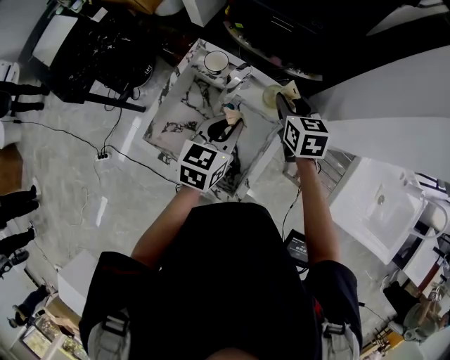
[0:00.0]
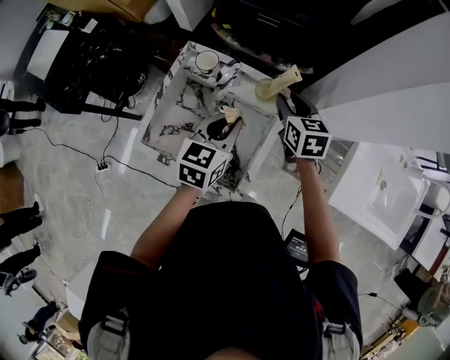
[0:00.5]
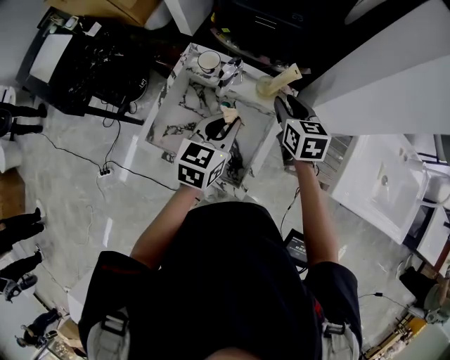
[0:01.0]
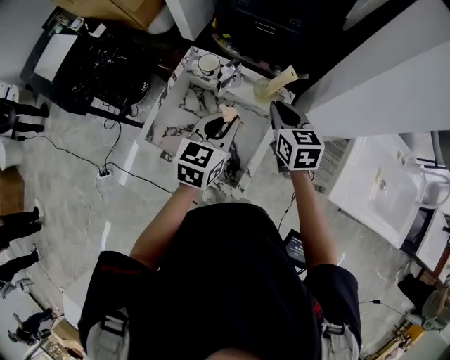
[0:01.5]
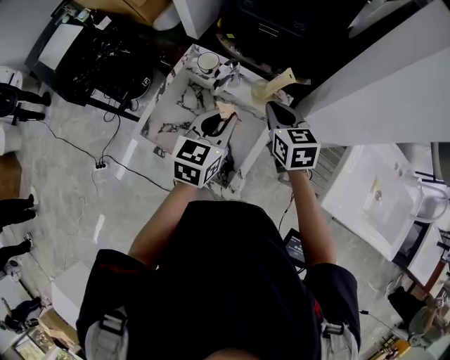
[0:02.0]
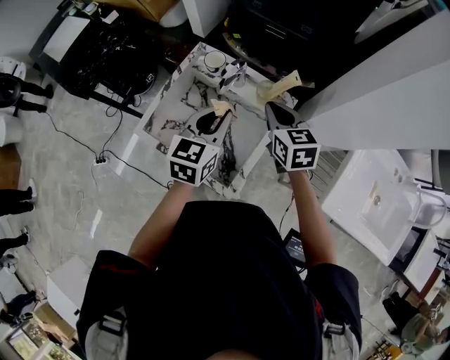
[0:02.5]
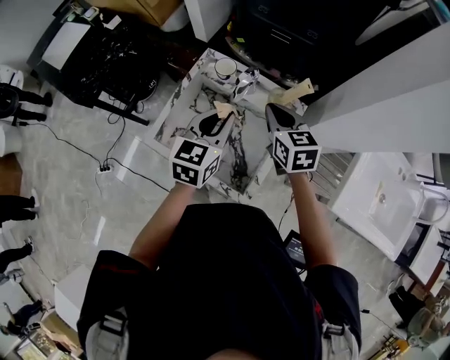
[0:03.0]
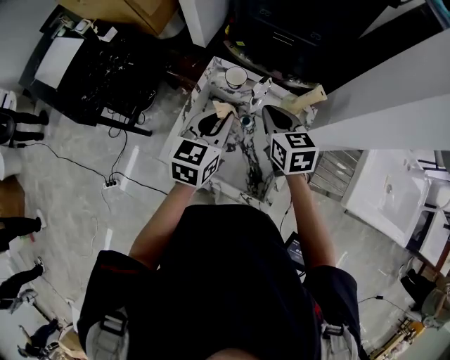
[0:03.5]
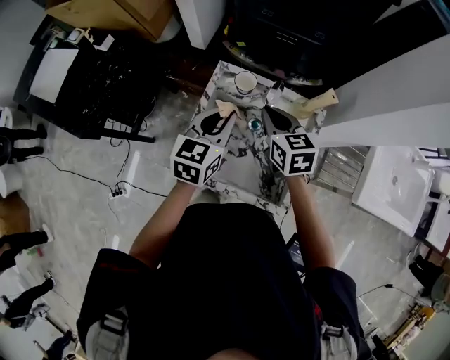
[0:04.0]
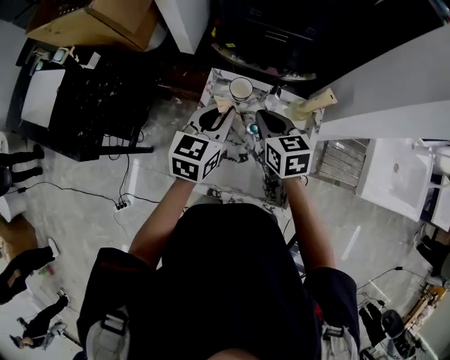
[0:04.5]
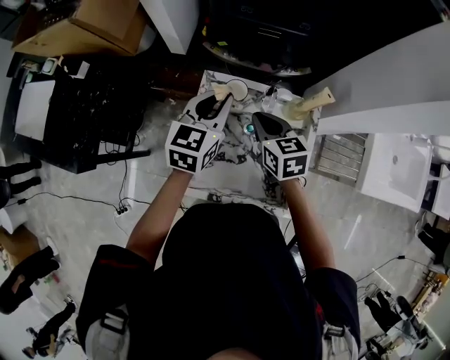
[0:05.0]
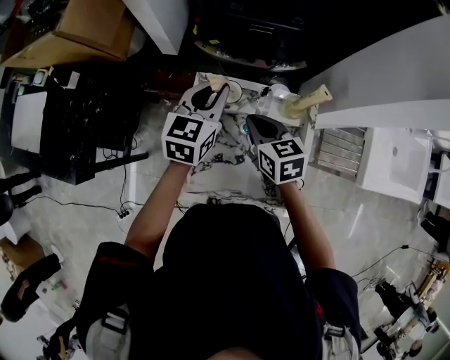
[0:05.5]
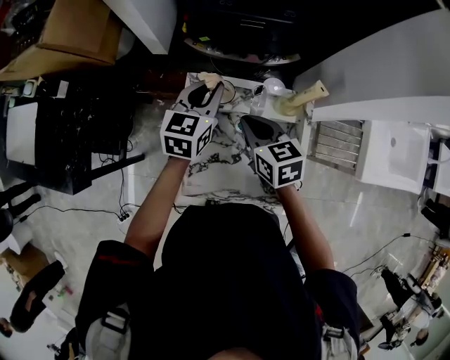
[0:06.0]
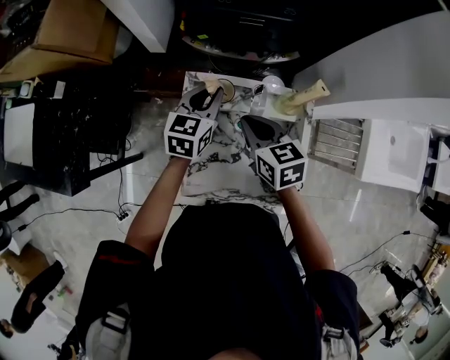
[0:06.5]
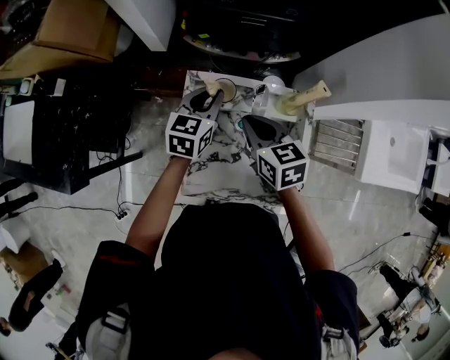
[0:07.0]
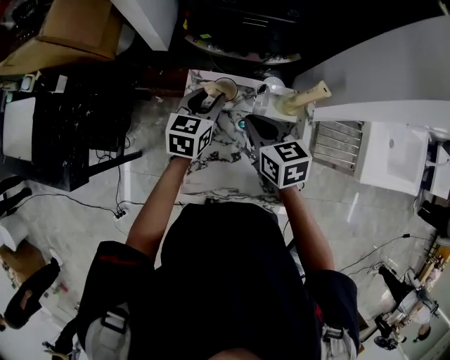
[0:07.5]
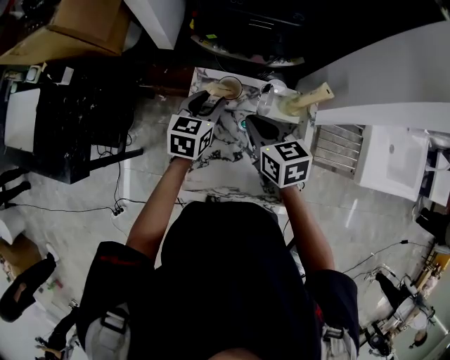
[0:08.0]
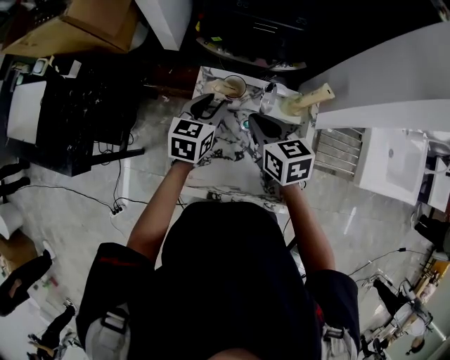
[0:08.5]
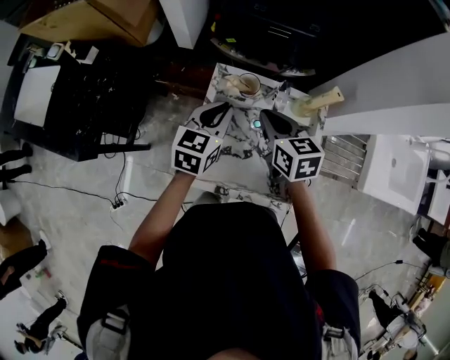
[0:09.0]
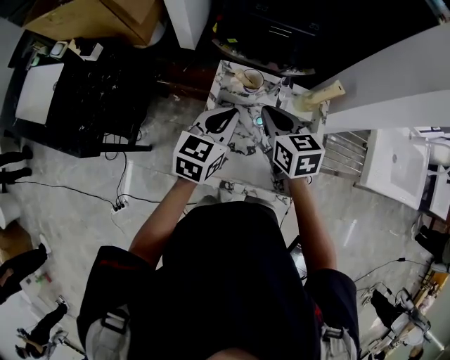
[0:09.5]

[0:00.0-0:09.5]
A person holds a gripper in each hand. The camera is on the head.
0:00.0 to 0:02.0: The left gripper shifts by roughly 5 cm. Meanwhile the right gripper is displaced backward by approximately 10 cm, and closes.
0:02.0 to 0:04.0: The right gripper is displaced to the left by about 15 cm; the left gripper heads to the left and forward, covering about 20 cm.
0:04.0 to 0:05.5: The left gripper travels forward by roughly 15 cm.
0:05.5 to 0:07.5: The left gripper travels downward by approximately 10 cm, and opens up.
0:07.5 to 0:09.5: The left gripper shifts roughly 15 cm backward and upward, and closes; the right gripper changes place by roughly 5 cm.

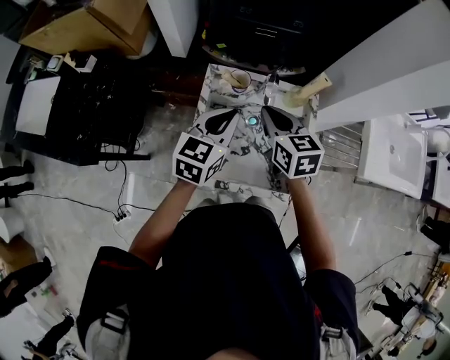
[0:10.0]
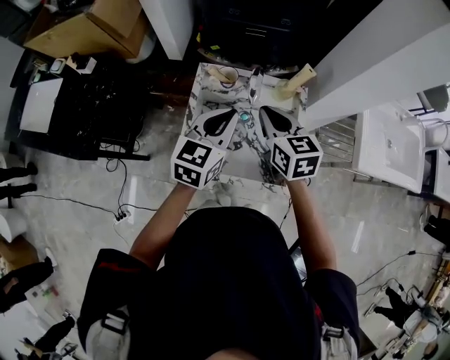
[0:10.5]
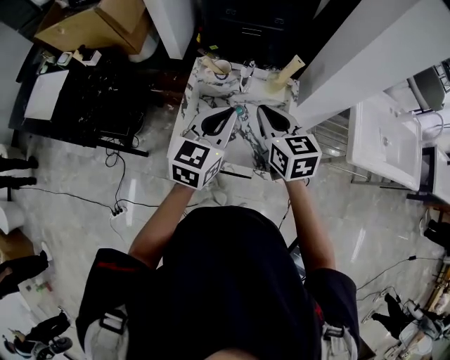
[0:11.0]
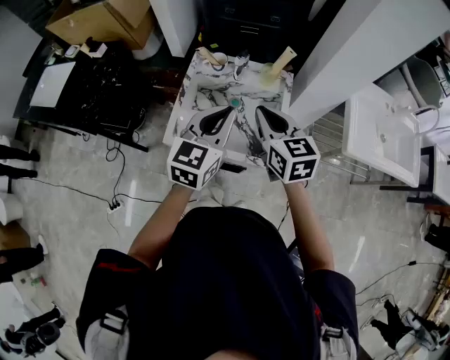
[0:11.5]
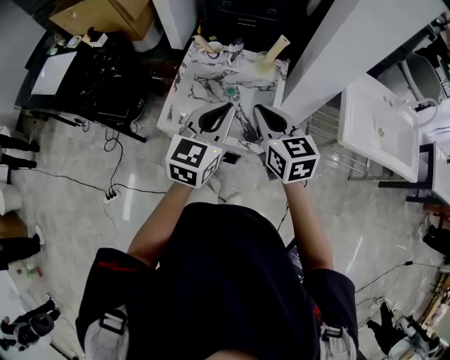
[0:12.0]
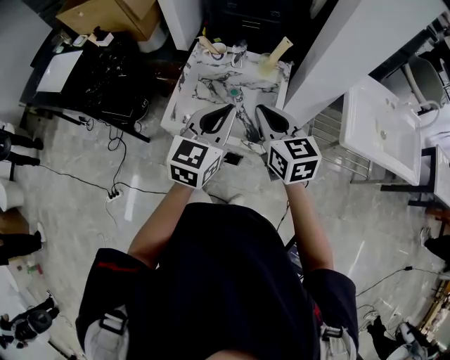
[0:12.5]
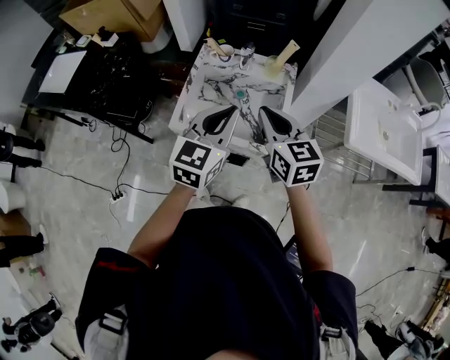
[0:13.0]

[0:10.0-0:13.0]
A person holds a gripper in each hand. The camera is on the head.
0:10.0 to 0:11.5: The grippers both shift backward, to the right and upward by about 20 cm.
0:11.5 to 0:13.0: Both grippers travel together backward, about 5 cm.

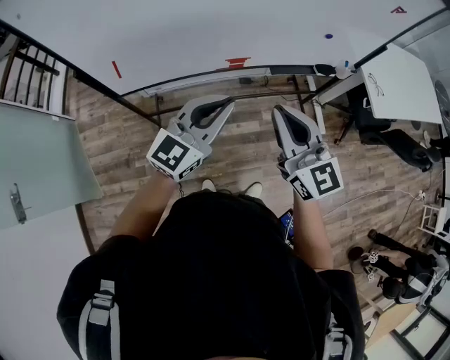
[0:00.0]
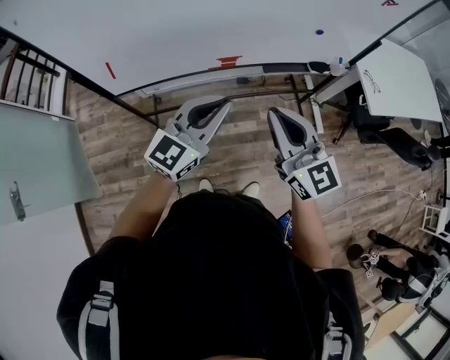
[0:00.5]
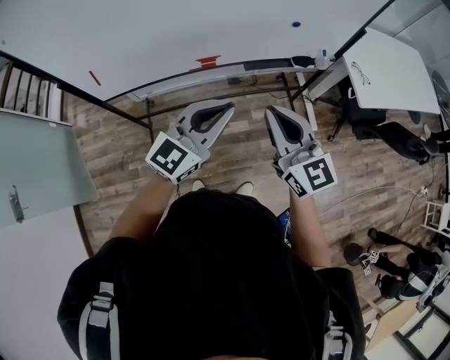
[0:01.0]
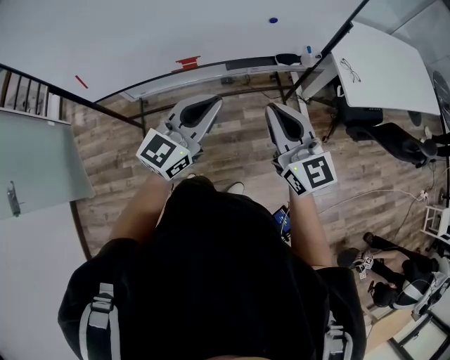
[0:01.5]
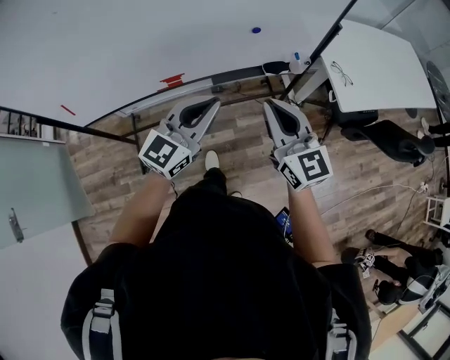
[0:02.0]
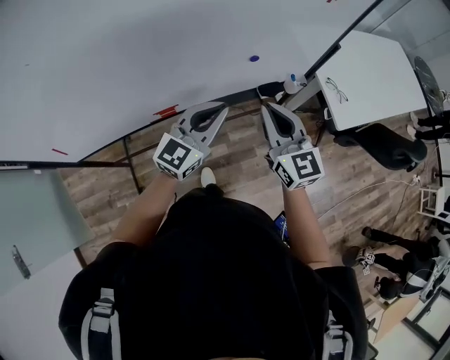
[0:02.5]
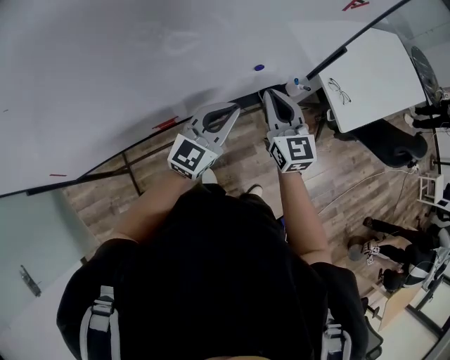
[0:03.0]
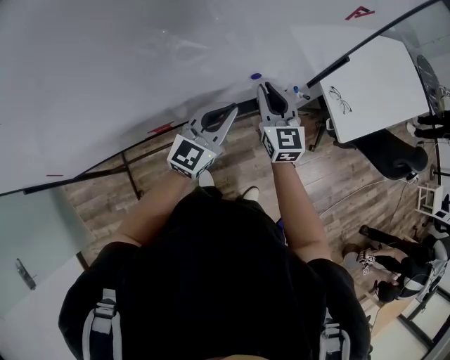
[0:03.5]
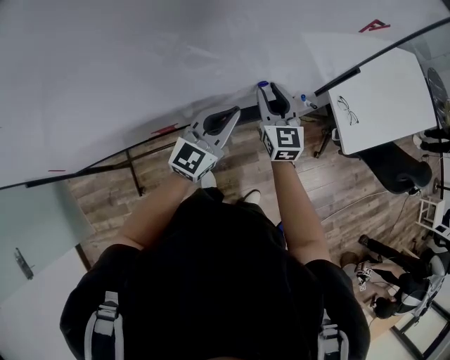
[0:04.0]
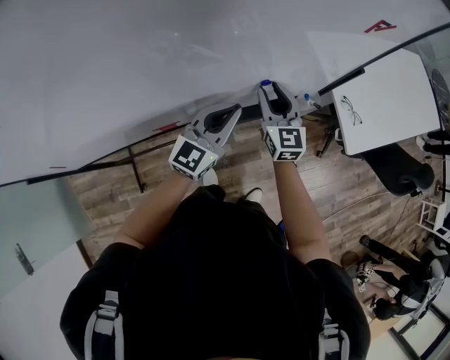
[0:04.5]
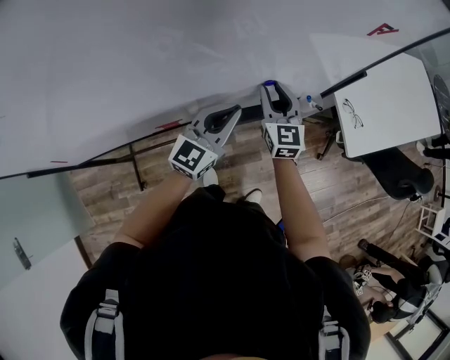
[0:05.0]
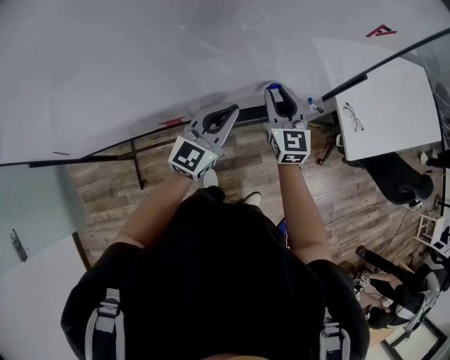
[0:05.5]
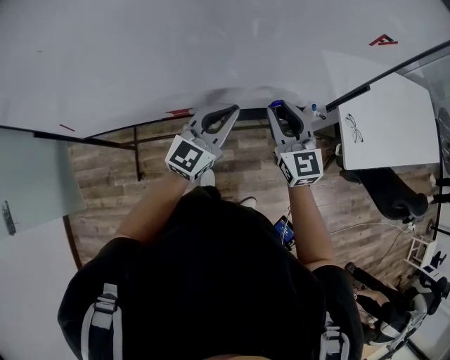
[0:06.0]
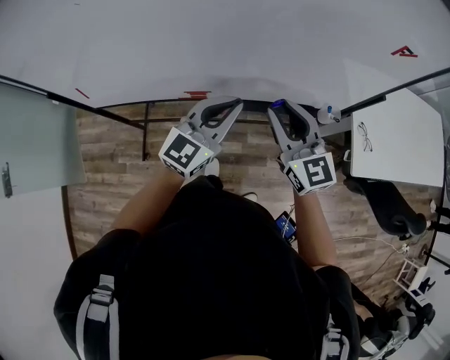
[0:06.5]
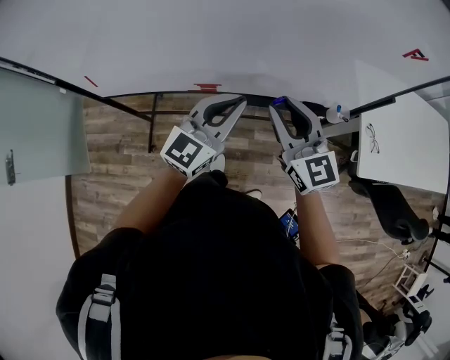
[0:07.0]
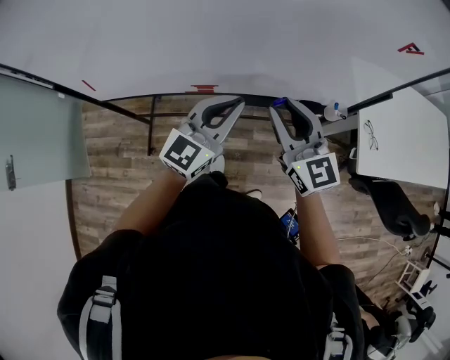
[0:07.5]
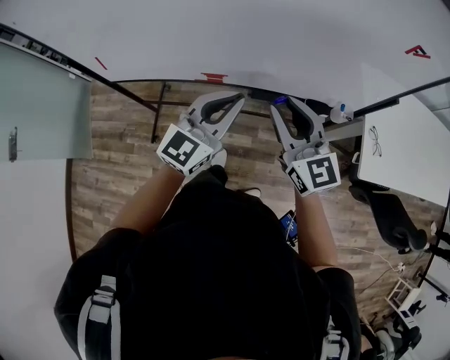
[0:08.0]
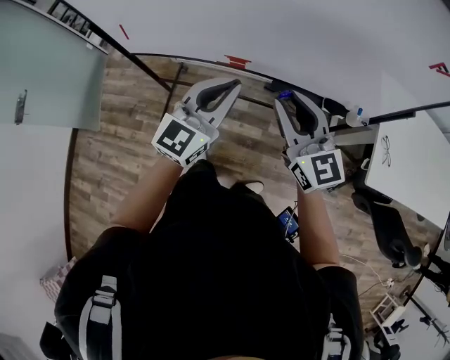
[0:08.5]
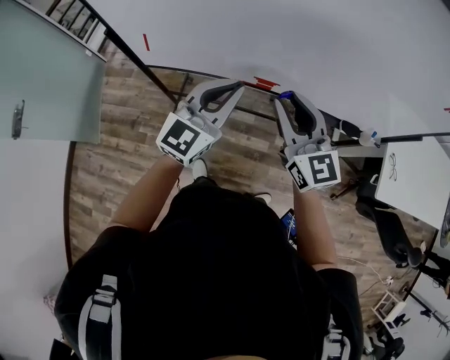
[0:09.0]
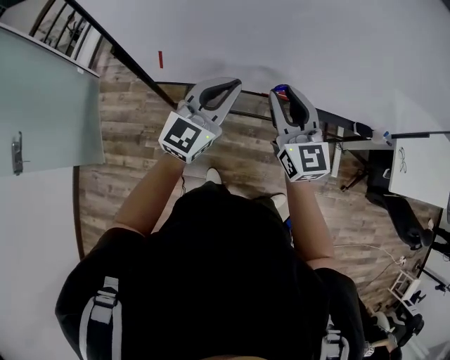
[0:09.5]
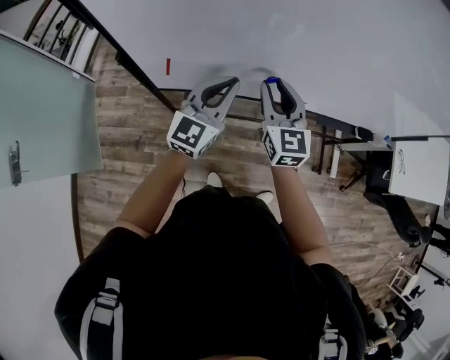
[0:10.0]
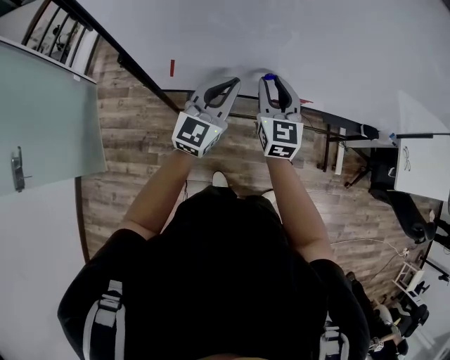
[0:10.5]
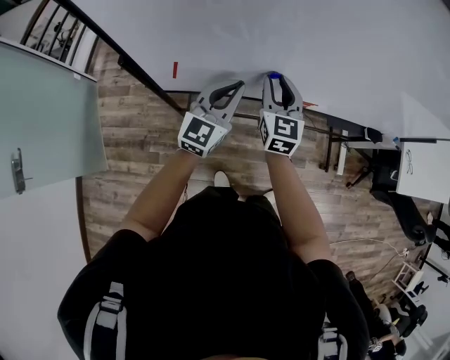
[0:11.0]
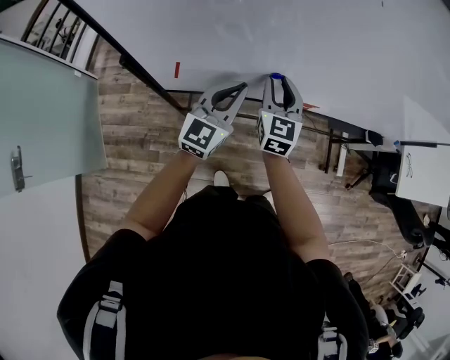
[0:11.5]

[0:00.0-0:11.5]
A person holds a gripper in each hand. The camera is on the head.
0:00.0 to 0:02.0: Both grippers move to the right and forward, some 25 cm.
0:02.0 to 0:04.0: Both grippers travel together forward, roughly 25 cm. The right gripper opens up.
0:04.0 to 0:06.0: The right gripper travels backward and upward by approximately 10 cm, while the left gripper travels backward by some 5 cm.
0:06.0 to 0:07.5: The left gripper heads backward, covering some 5 cm; the right gripper heads backward, to the left and upward, covering approximately 10 cm.
0:07.5 to 0:09.5: The two grippers go some 35 cm to the left.
0:09.5 to 0:11.5: The left gripper heads downward, to the left and forward, covering about 10 cm. Meanwhile the right gripper goes approximately 15 cm forward, downward and to the left, and turns by approximately 20 degrees.

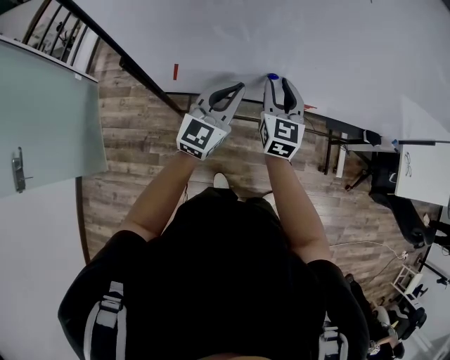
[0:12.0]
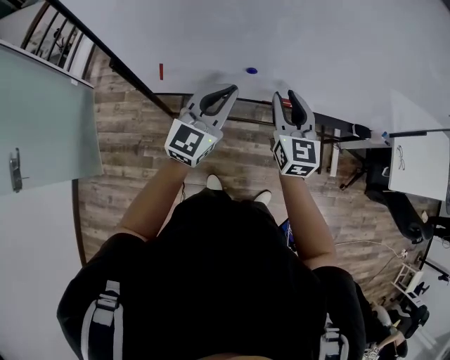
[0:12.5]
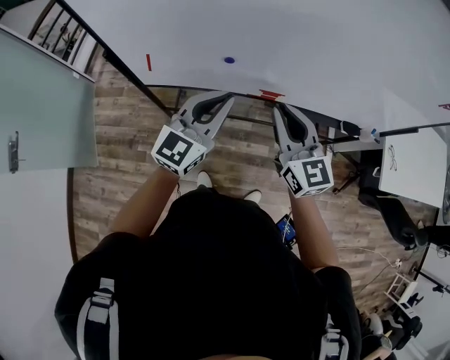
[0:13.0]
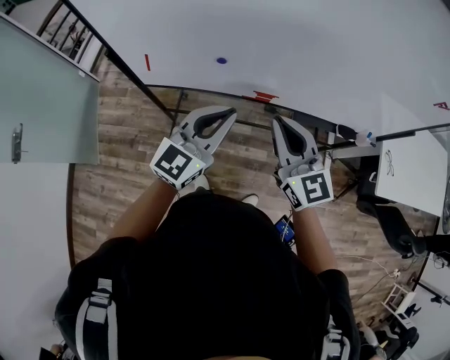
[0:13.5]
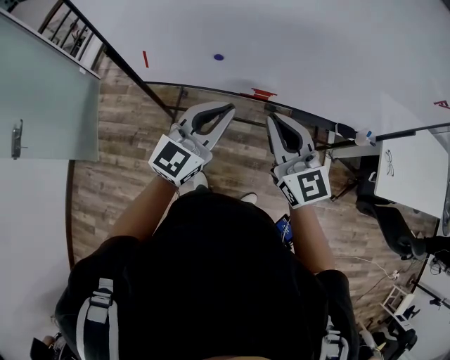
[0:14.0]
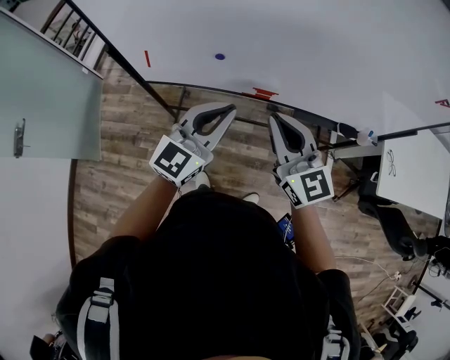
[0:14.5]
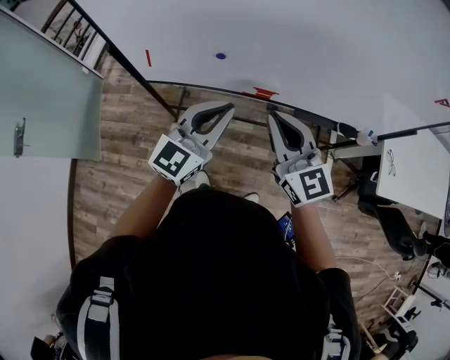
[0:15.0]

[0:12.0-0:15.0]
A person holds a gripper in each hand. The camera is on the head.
0:12.0 to 0:13.5: The left gripper shifts some 25 cm to the right, backward and upward, while the right gripper is displaced backward, to the right and upward by roughly 25 cm, changes its angle by approximately 30 degrees, and closes.
0:13.5 to 0:15.0: Neither gripper changes place.
